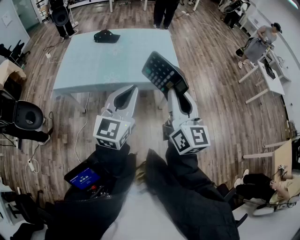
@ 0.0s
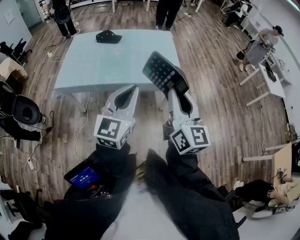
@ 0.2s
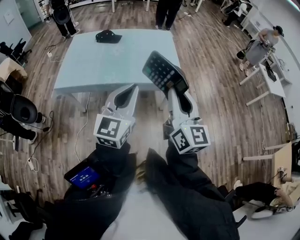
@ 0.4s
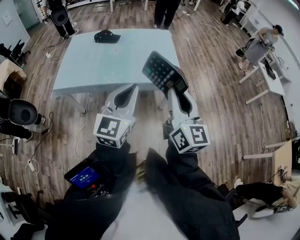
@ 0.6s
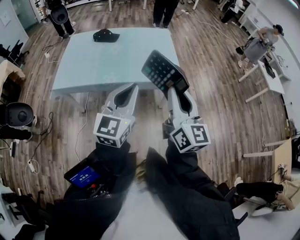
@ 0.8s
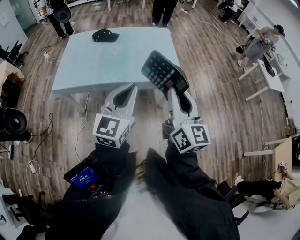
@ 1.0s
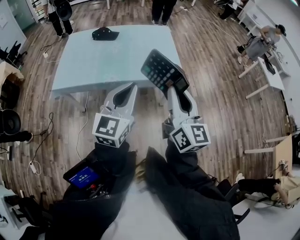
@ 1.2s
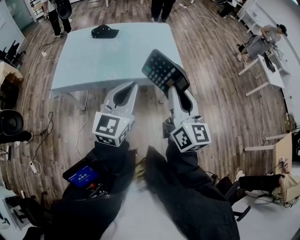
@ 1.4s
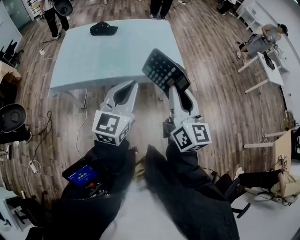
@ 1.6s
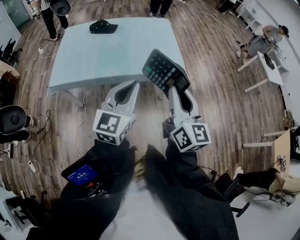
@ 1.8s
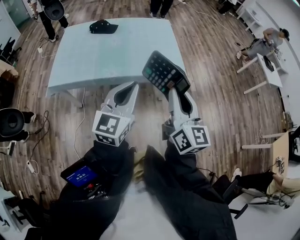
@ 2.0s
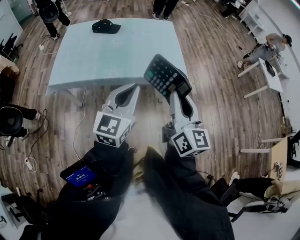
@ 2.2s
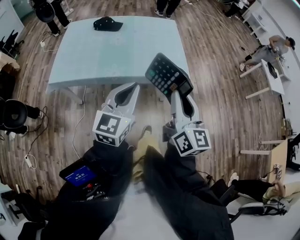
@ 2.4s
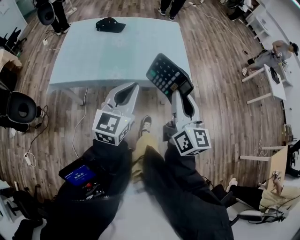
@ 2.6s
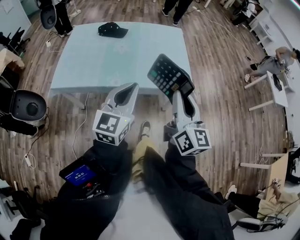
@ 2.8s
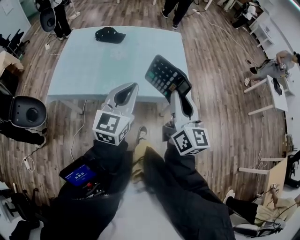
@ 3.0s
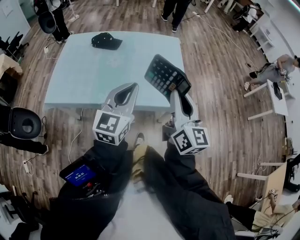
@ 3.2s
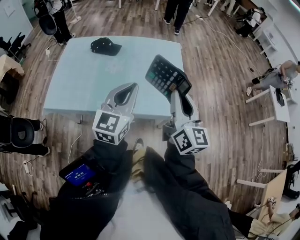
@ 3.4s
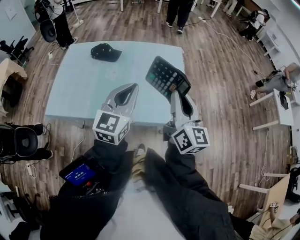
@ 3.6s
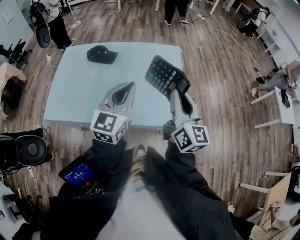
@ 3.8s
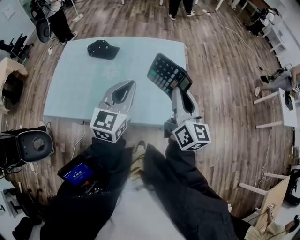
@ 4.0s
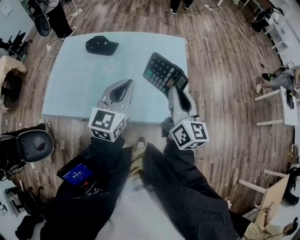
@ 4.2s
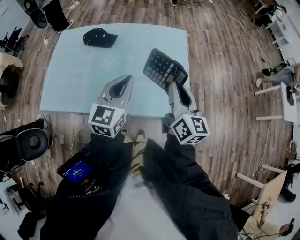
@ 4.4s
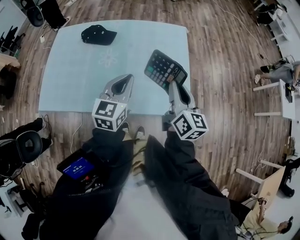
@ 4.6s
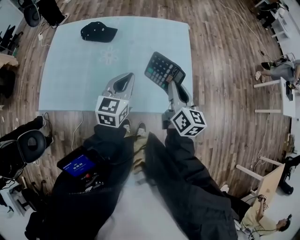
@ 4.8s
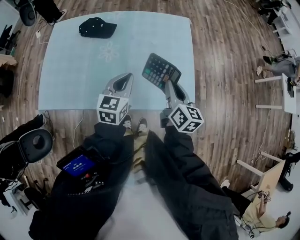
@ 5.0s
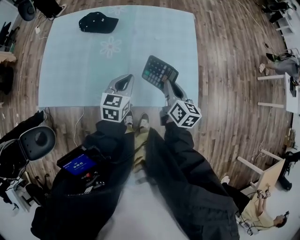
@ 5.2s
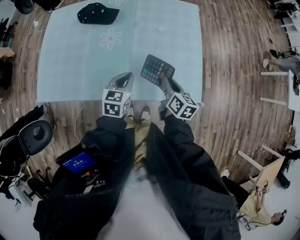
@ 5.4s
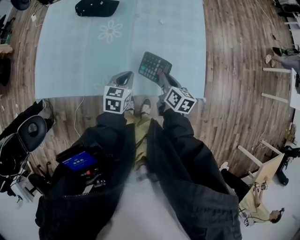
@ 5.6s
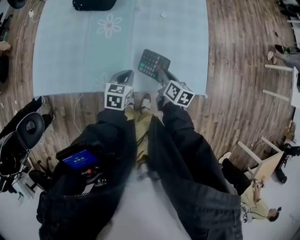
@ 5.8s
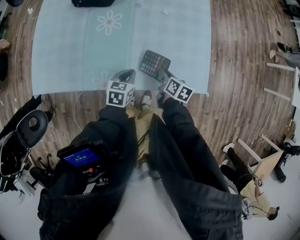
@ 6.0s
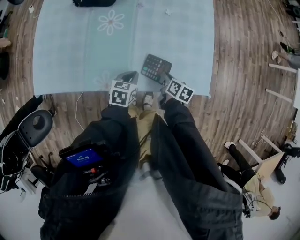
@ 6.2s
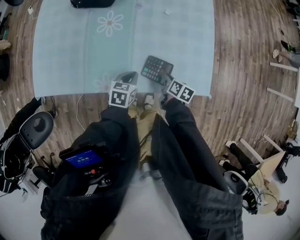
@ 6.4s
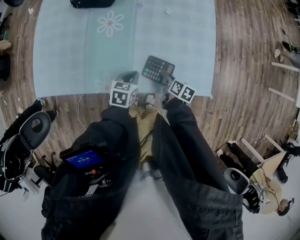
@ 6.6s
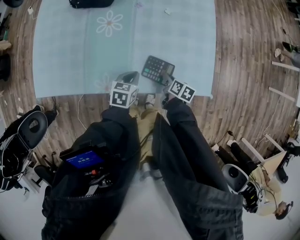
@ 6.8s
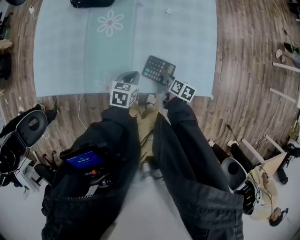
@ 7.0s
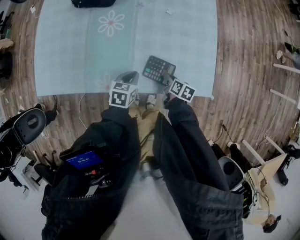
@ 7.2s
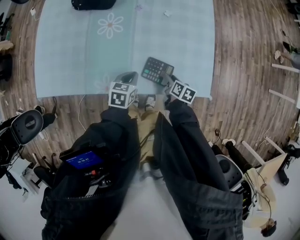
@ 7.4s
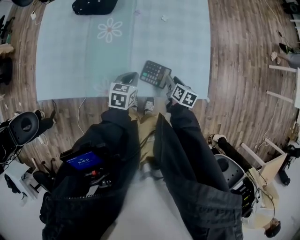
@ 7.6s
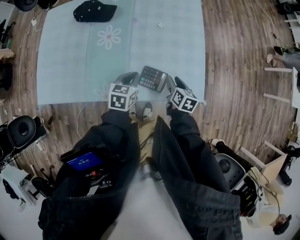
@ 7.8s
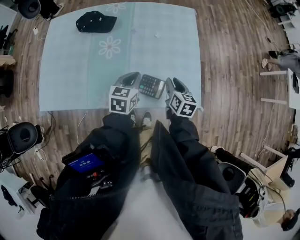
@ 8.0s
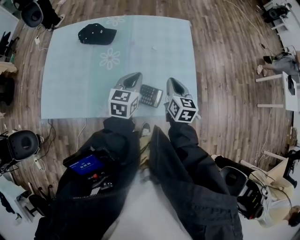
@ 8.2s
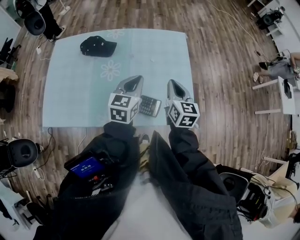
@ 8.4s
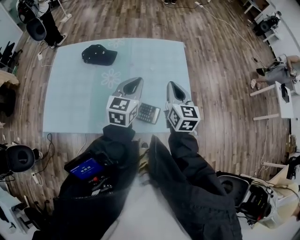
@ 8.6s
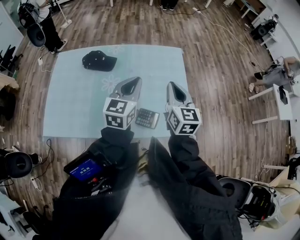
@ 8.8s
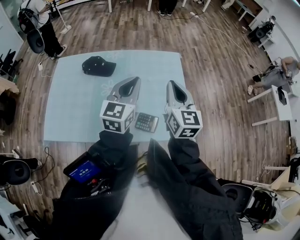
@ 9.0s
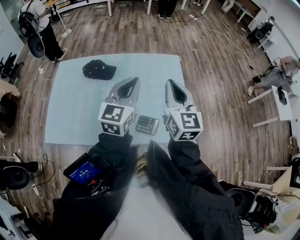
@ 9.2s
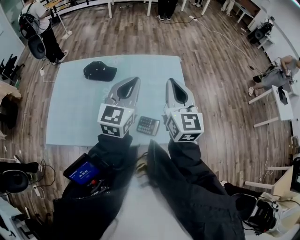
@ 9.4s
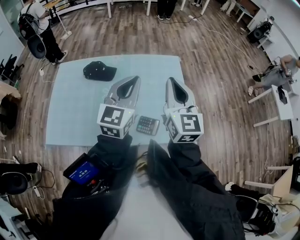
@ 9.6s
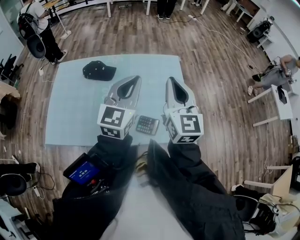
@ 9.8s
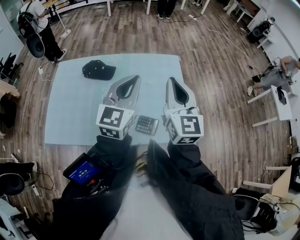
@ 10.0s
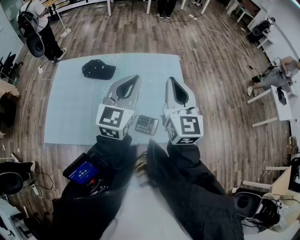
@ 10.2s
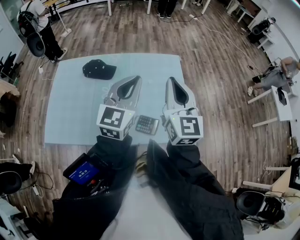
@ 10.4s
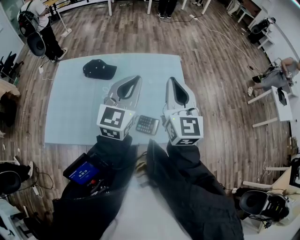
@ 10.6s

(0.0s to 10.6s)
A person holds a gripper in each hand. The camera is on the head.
0.0s - 1.6s: The left gripper ends up approximately 5 cm from where it was.
1.6s - 3.0s: The grippers both shift forward by roughly 15 cm.
3.0s - 4.6s: The grippers both shift forward by roughly 25 cm.
4.6s - 6.0s: The two grippers go approximately 30 cm downward. The right gripper tilts its fingers some 40 degrees downward, while the left gripper tips its fingers downward by some 30 degrees.
6.0s - 7.6s: The right gripper heads to the right, covering approximately 5 cm, and opens.
7.6s - 9.0s: The two grippers go about 35 cm upward. The right gripper points its fingers about 40 degrees further upward, and closes up; the left gripper tips its fingers upward by some 40 degrees.
9.0s - 10.6s: The left gripper changes place by about 5 cm, while the right gripper is displaced upward by about 5 cm.

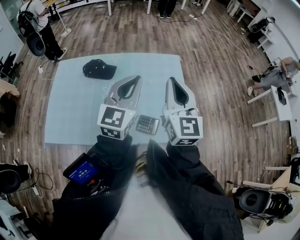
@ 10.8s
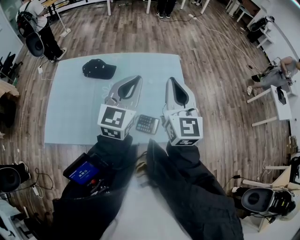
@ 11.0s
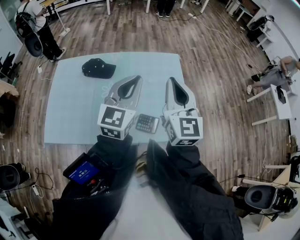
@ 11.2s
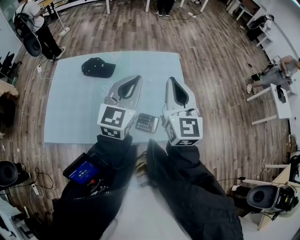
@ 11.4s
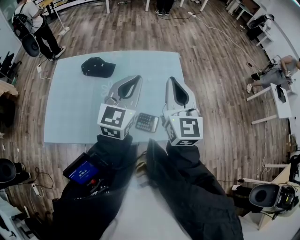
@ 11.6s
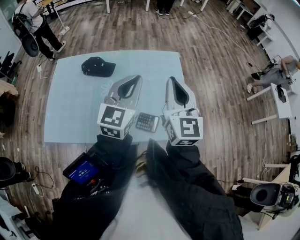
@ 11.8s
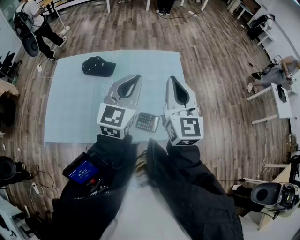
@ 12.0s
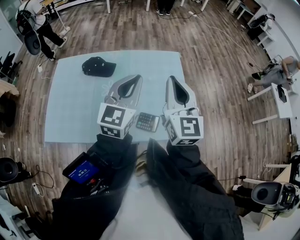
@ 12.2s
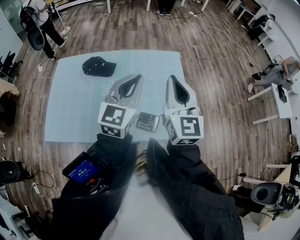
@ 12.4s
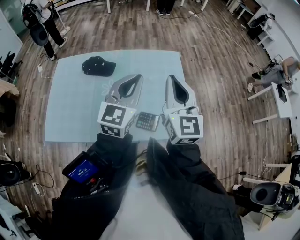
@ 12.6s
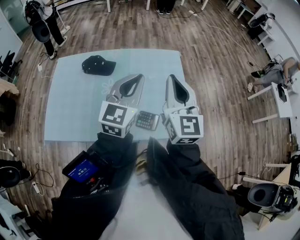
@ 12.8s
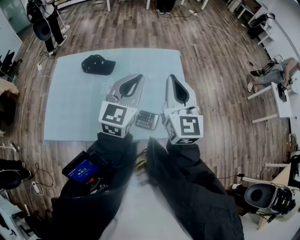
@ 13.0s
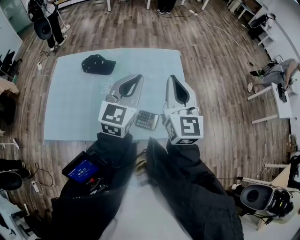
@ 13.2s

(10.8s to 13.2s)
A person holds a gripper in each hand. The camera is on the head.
10.8s - 12.0s: Neither gripper changes place.
12.0s - 13.2s: The two grippers keep their place.

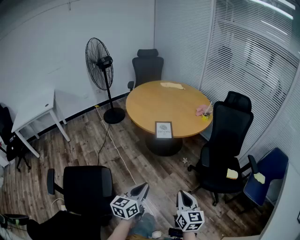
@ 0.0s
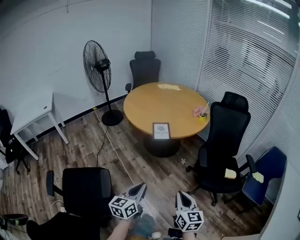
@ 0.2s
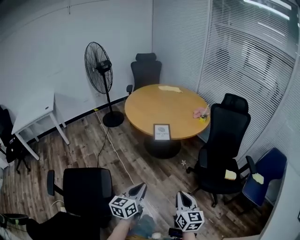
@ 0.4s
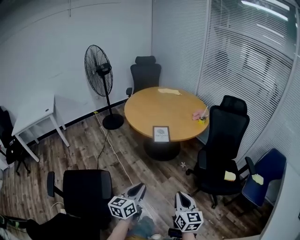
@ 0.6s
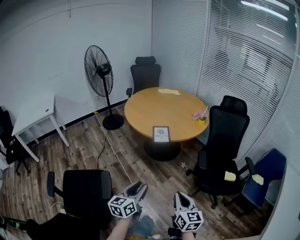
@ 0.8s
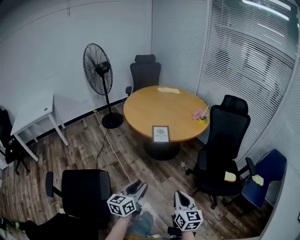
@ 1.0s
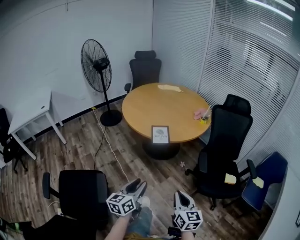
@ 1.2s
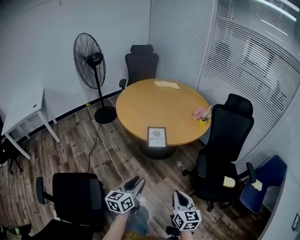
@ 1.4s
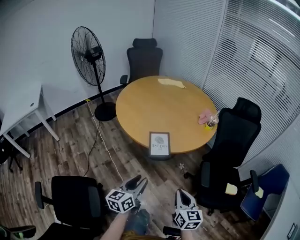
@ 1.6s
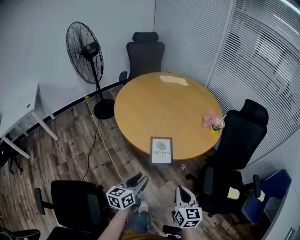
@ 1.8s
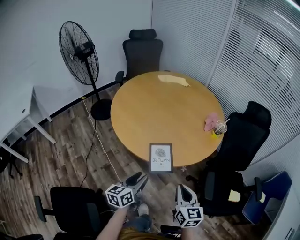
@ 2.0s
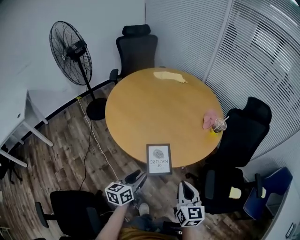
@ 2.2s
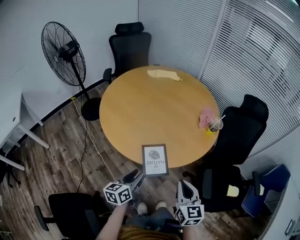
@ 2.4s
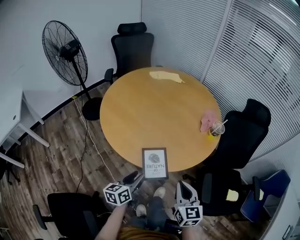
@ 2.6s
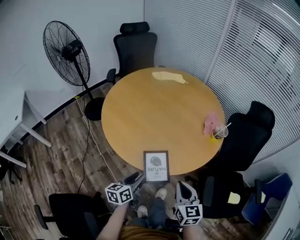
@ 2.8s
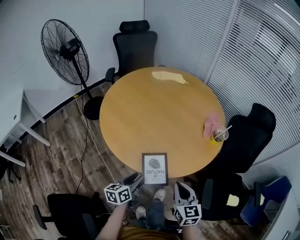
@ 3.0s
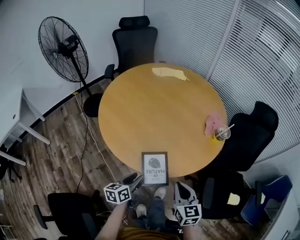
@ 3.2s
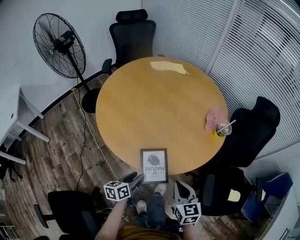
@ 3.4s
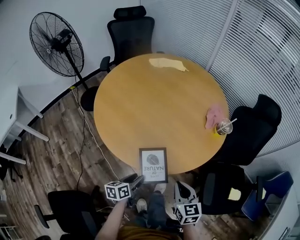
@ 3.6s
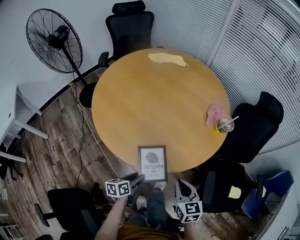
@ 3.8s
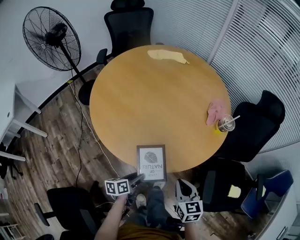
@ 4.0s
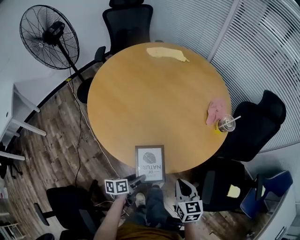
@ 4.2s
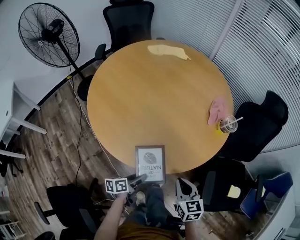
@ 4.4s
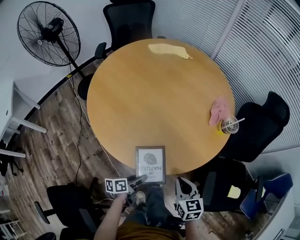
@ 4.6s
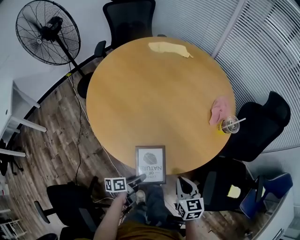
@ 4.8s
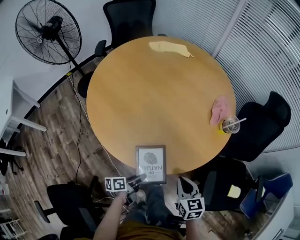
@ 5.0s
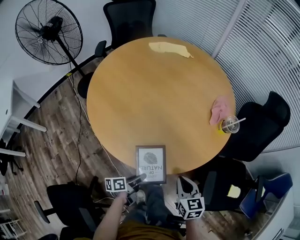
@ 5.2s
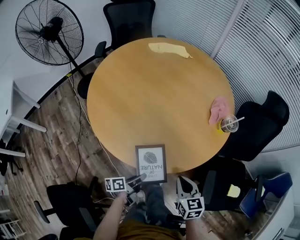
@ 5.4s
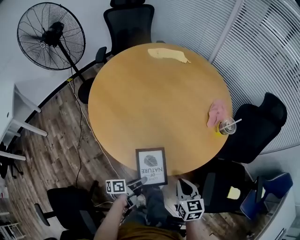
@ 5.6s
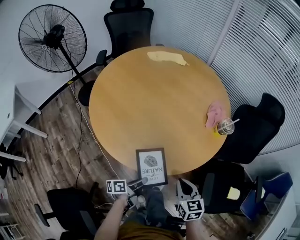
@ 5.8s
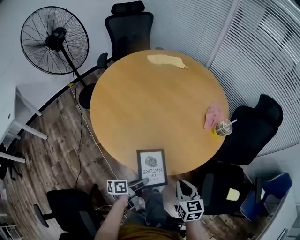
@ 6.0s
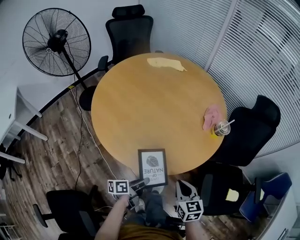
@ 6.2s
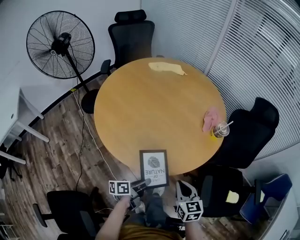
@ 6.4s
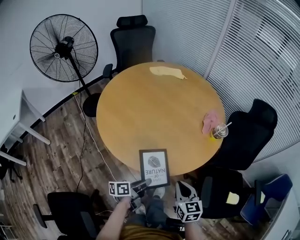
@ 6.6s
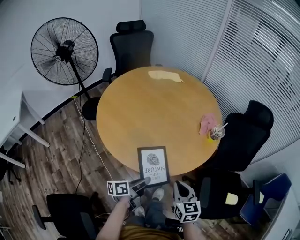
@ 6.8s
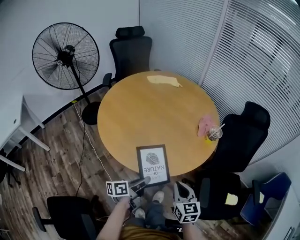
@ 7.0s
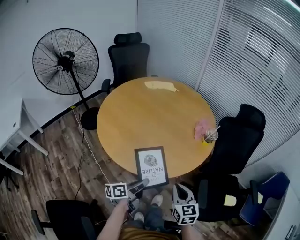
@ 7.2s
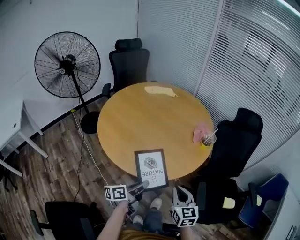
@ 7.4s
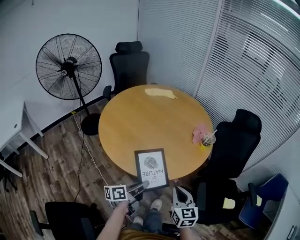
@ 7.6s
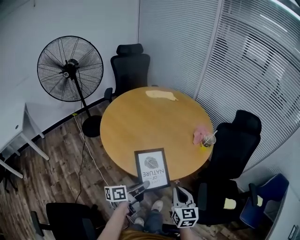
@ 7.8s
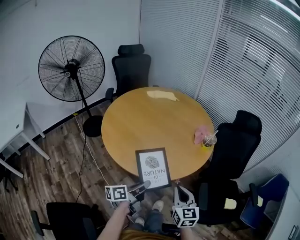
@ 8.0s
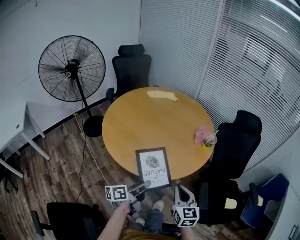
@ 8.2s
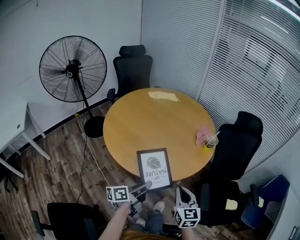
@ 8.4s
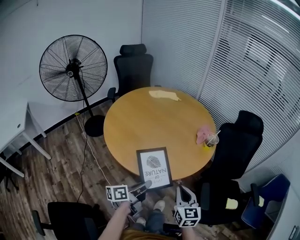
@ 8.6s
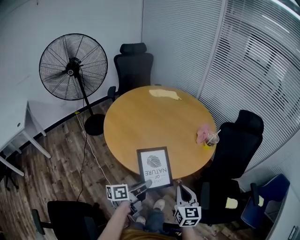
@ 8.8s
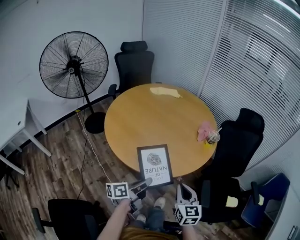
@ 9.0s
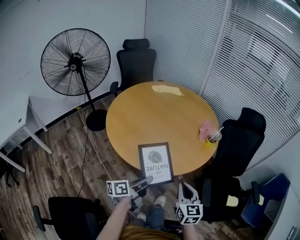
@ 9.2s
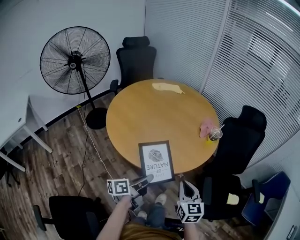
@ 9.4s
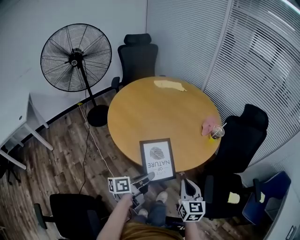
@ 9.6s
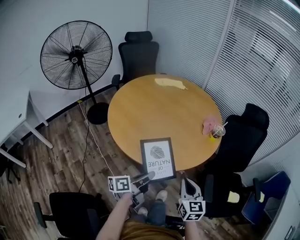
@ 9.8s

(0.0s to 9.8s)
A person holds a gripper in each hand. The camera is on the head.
0.0s - 1.4s: Both grippers travel together forward, about 15 cm. The left gripper opens up.
1.4s - 2.8s: Both grippers travel together forward, roughly 35 cm.
2.8s - 4.2s: The left gripper moves downward, roughly 15 cm, and swivels some 30 degrees. The right gripper moves downward, approximately 10 cm.
4.2s - 5.6s: The left gripper closes.
5.6s - 7.0s: The left gripper moves upward, approximately 15 cm, while the right gripper is displaced upward and backward by approximately 10 cm.
7.0s - 8.4s: The right gripper changes place by some 5 cm. Meanwhile the left gripper goes about 5 cm upward.
8.4s - 9.8s: There are only small adjustments of the grippers.

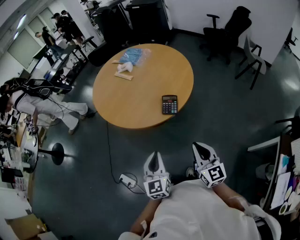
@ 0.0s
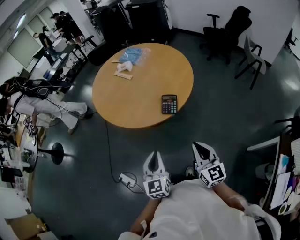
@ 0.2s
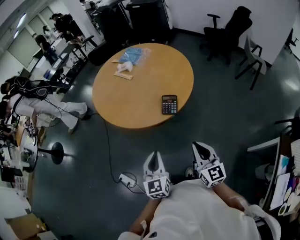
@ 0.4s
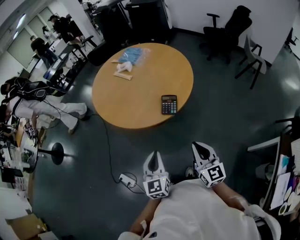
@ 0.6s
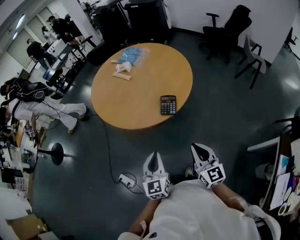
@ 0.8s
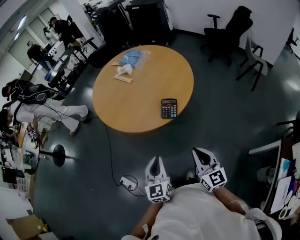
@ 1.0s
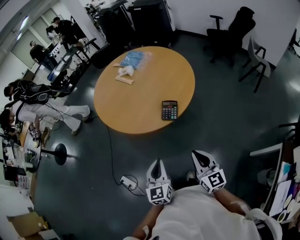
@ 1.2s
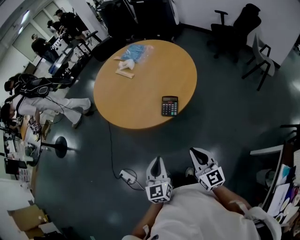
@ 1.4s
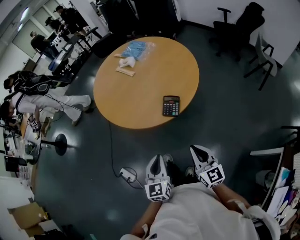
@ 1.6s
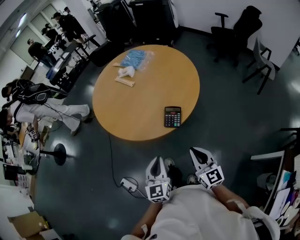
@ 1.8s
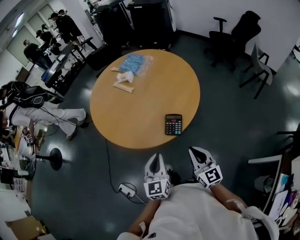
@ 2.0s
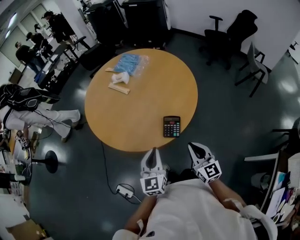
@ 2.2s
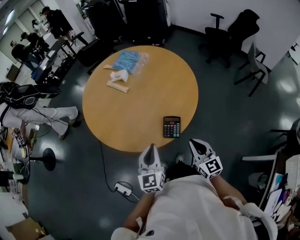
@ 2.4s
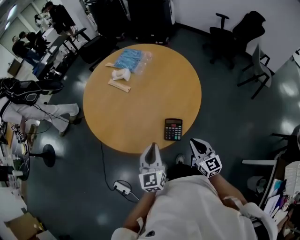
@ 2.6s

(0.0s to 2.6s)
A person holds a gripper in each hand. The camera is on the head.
0.0s - 1.2s: The grippers stay close to where they were, moving slightly.
1.2s - 2.6s: Both grippers travel together forward, approximately 25 cm.
